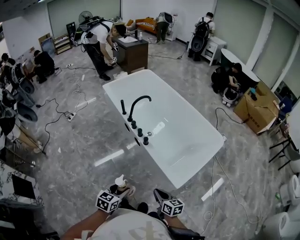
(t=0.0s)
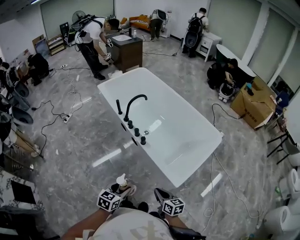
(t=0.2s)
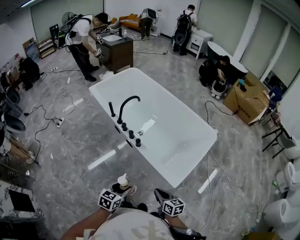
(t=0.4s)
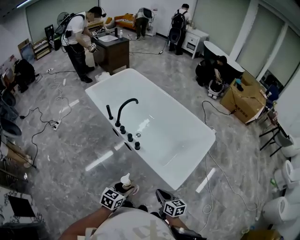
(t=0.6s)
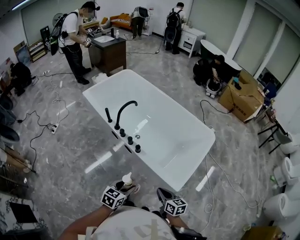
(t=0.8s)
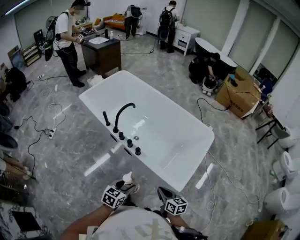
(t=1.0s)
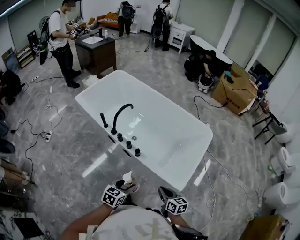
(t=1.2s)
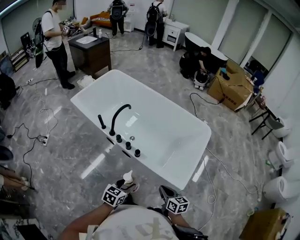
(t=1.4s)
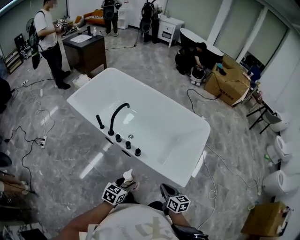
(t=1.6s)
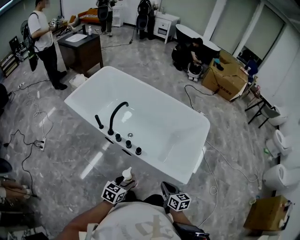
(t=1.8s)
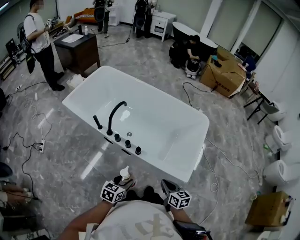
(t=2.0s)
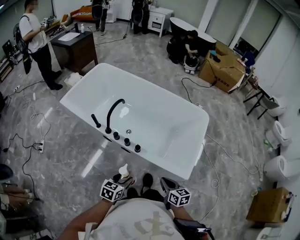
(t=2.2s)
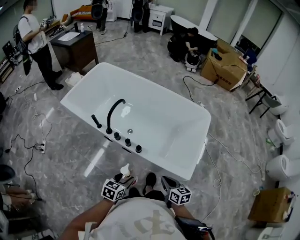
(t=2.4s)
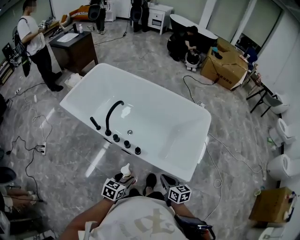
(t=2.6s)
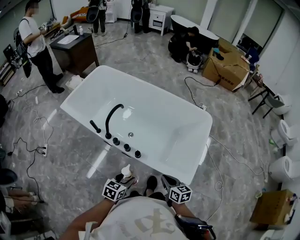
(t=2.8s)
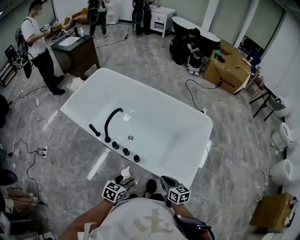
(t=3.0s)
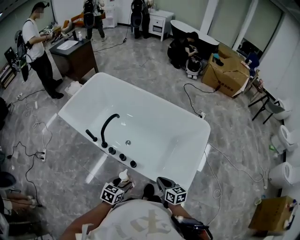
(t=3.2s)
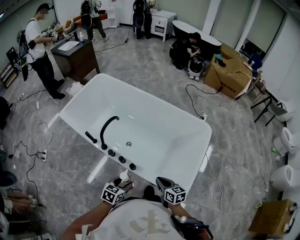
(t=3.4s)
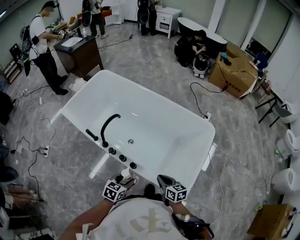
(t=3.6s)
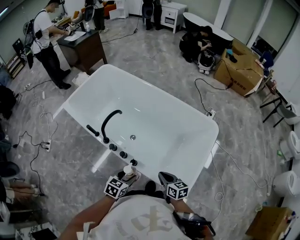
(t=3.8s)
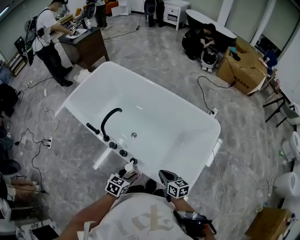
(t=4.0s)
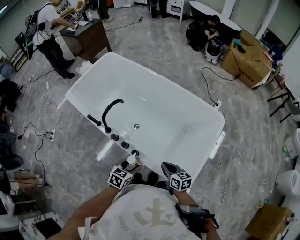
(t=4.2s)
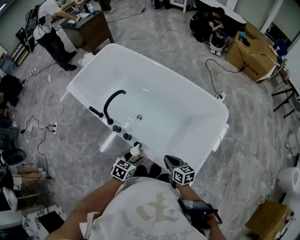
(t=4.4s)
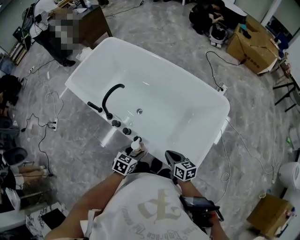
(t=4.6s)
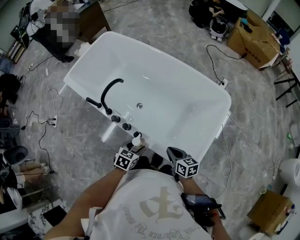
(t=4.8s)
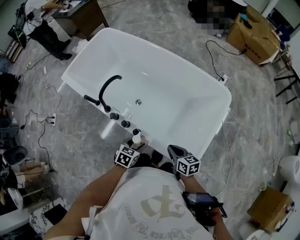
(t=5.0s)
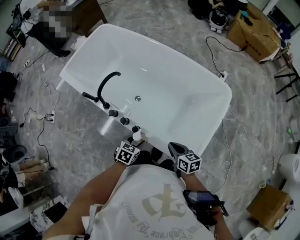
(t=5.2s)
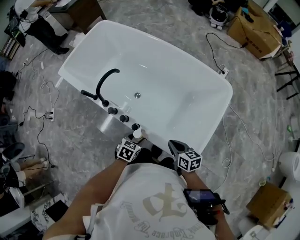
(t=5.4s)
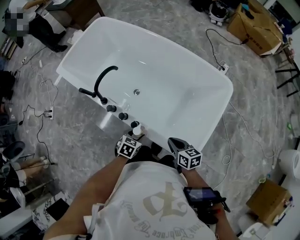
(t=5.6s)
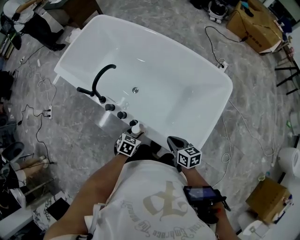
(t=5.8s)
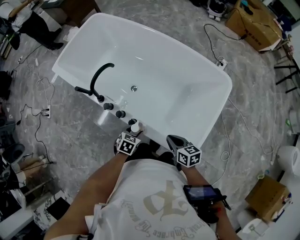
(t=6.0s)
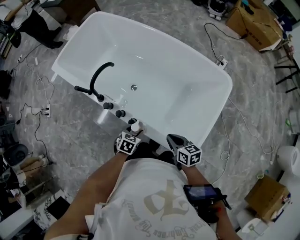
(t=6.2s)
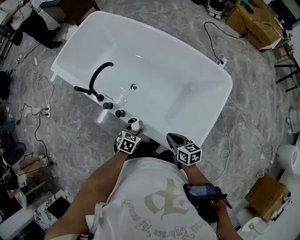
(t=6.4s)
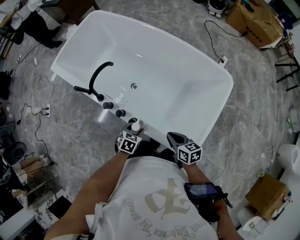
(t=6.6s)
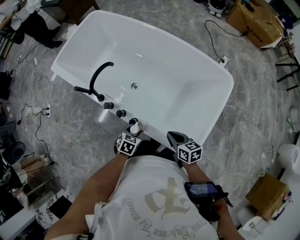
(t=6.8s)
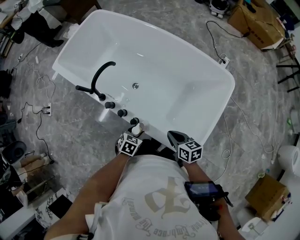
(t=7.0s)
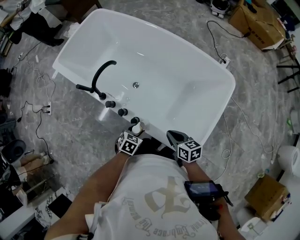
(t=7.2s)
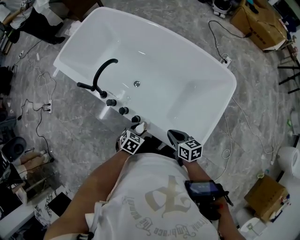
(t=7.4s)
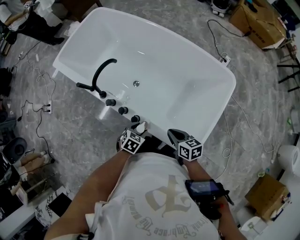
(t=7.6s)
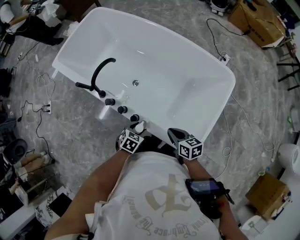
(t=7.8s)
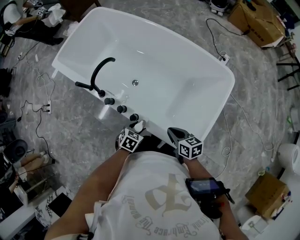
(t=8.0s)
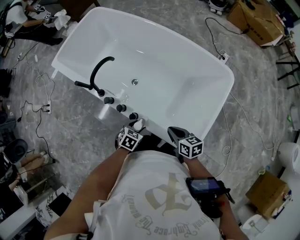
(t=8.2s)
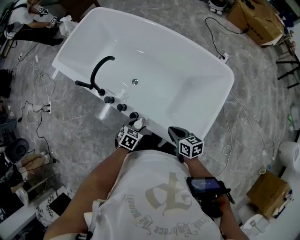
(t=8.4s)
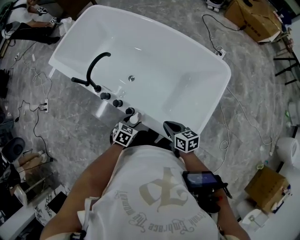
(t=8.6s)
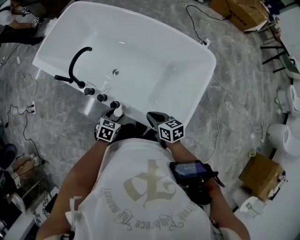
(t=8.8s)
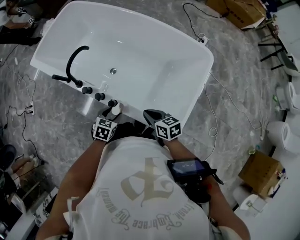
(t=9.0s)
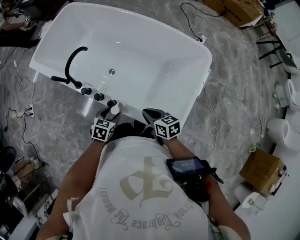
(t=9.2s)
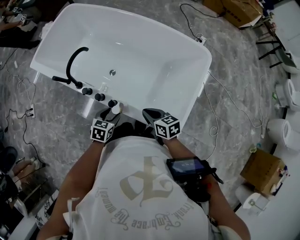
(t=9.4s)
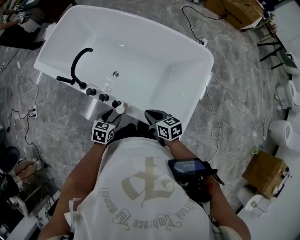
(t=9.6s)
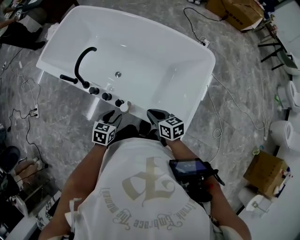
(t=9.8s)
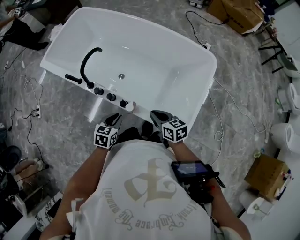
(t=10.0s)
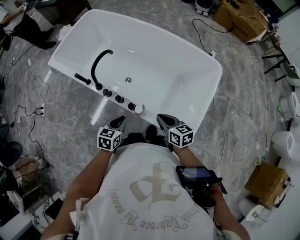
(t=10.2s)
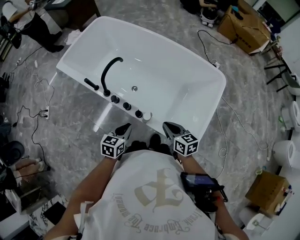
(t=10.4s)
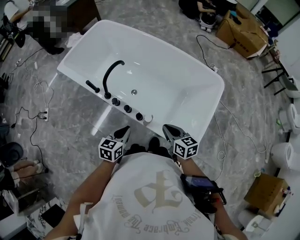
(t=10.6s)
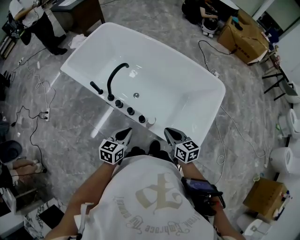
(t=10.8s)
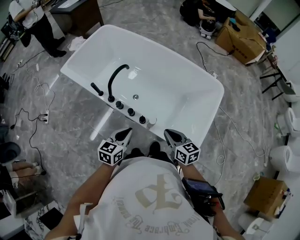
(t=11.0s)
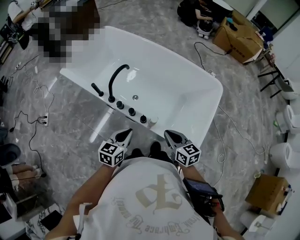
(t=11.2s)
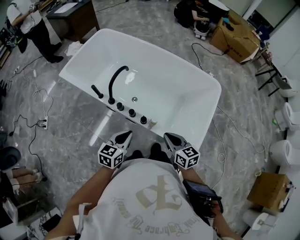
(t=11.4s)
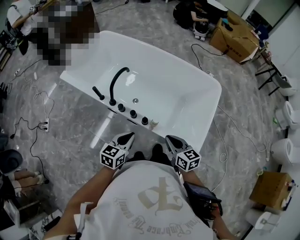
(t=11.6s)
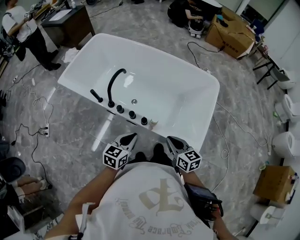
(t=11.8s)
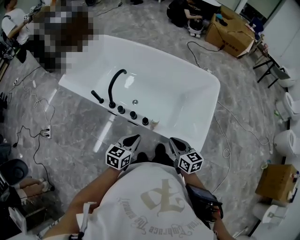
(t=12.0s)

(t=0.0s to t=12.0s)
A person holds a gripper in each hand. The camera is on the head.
t=0.0s - t=1.6s: The right gripper changes place by approximately 15 cm, and changes its angle by about 30 degrees, while the left gripper ends up roughly 20 cm from where it was, and changes its angle by approximately 30 degrees.
t=1.6s - t=3.0s: Both grippers move forward, about 10 cm.
t=3.0s - t=4.4s: The left gripper goes approximately 10 cm forward and to the right, while the right gripper shifts some 10 cm forward.
t=4.4s - t=6.0s: The left gripper travels downward by about 10 cm.
t=6.0s - t=9.0s: The grippers make only small movements.
t=9.0s - t=10.4s: The left gripper goes some 10 cm upward and to the left, swivels some 20 degrees, and closes up. The right gripper moves upward, roughly 5 cm.
t=10.4s - t=12.0s: The right gripper travels backward by approximately 10 cm. Meanwhile the left gripper moves upward, some 5 cm.

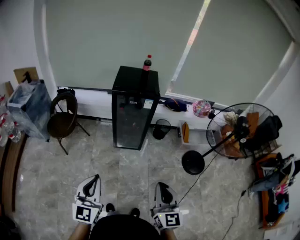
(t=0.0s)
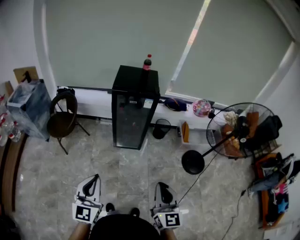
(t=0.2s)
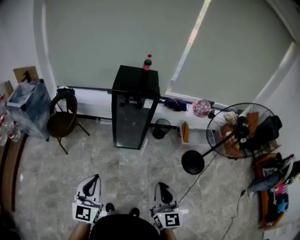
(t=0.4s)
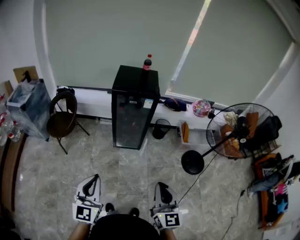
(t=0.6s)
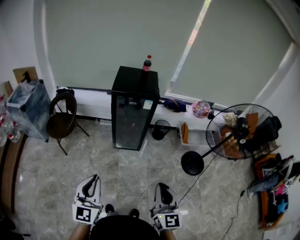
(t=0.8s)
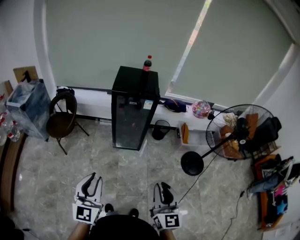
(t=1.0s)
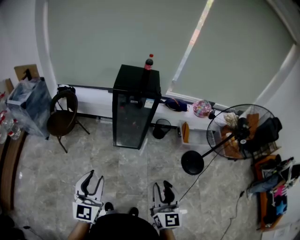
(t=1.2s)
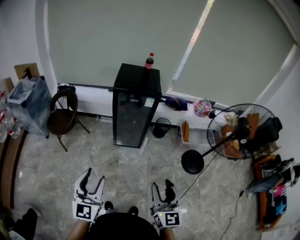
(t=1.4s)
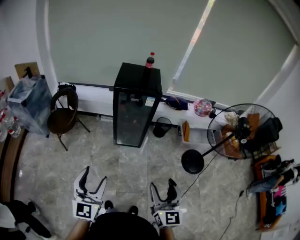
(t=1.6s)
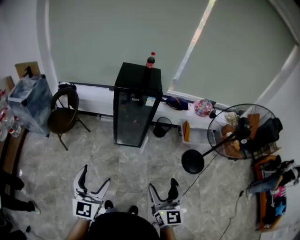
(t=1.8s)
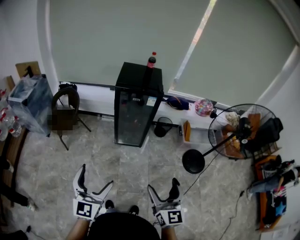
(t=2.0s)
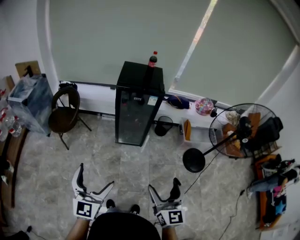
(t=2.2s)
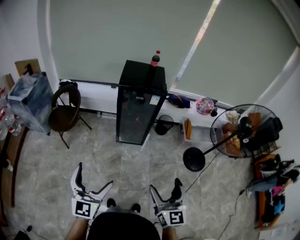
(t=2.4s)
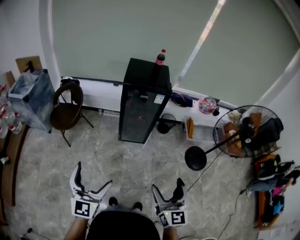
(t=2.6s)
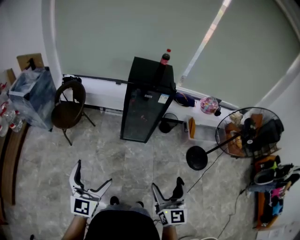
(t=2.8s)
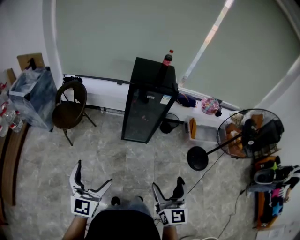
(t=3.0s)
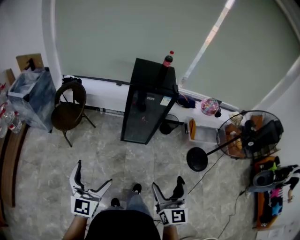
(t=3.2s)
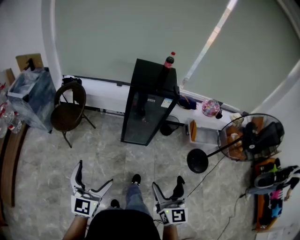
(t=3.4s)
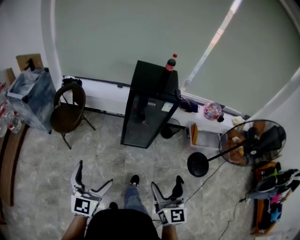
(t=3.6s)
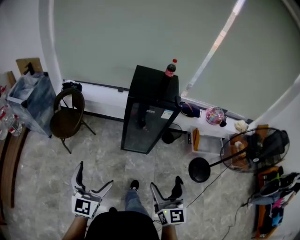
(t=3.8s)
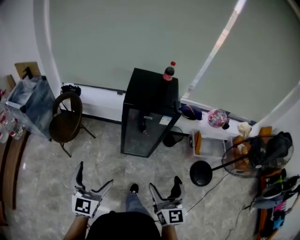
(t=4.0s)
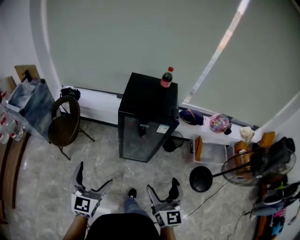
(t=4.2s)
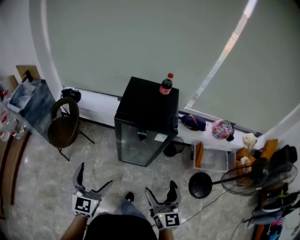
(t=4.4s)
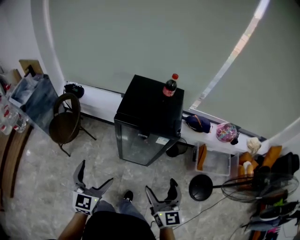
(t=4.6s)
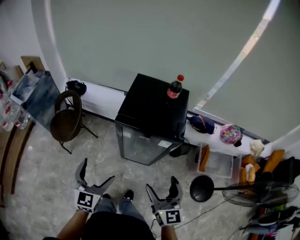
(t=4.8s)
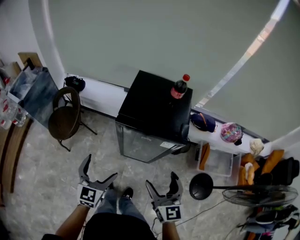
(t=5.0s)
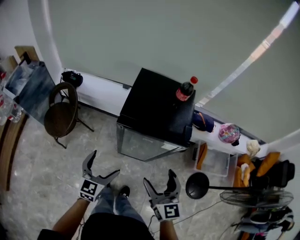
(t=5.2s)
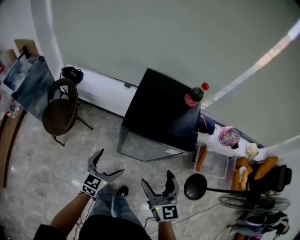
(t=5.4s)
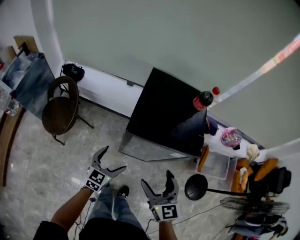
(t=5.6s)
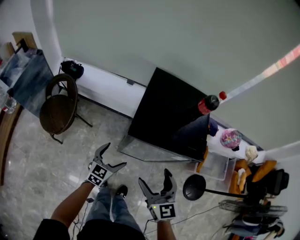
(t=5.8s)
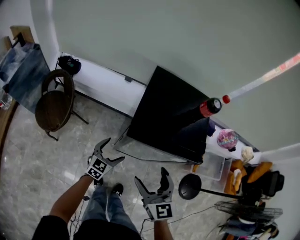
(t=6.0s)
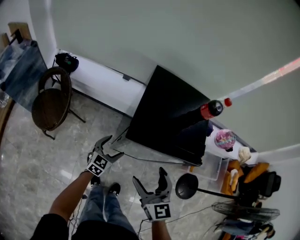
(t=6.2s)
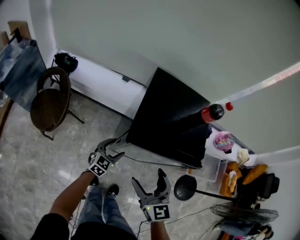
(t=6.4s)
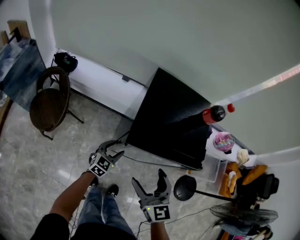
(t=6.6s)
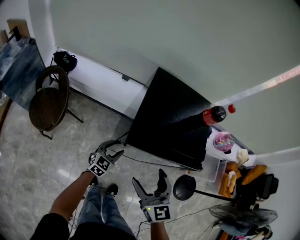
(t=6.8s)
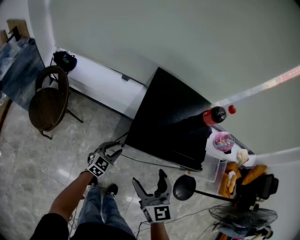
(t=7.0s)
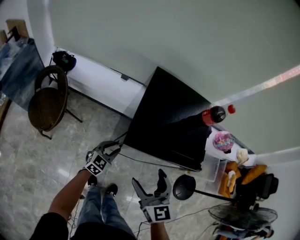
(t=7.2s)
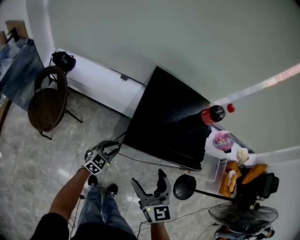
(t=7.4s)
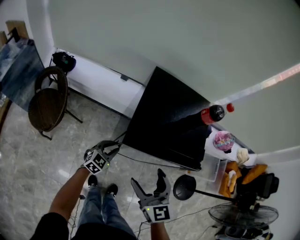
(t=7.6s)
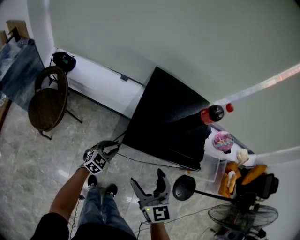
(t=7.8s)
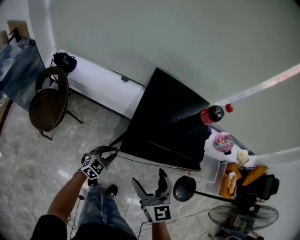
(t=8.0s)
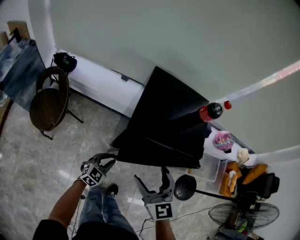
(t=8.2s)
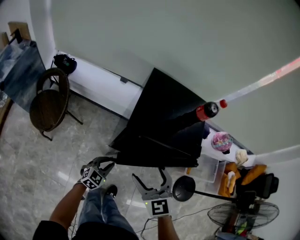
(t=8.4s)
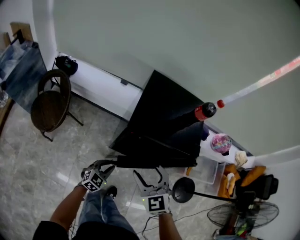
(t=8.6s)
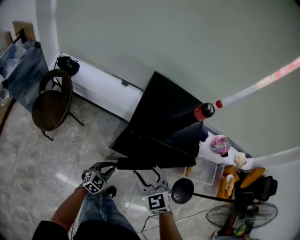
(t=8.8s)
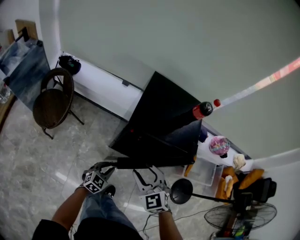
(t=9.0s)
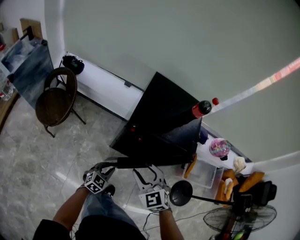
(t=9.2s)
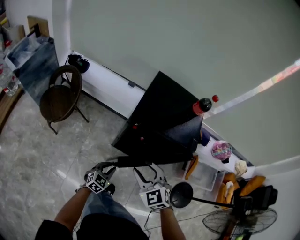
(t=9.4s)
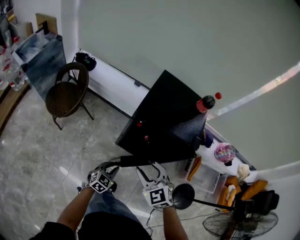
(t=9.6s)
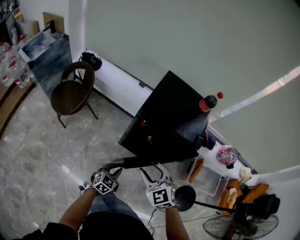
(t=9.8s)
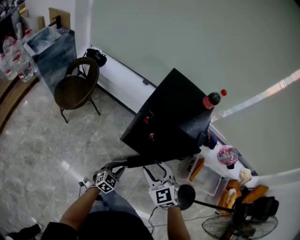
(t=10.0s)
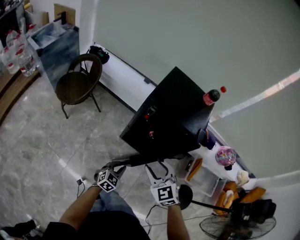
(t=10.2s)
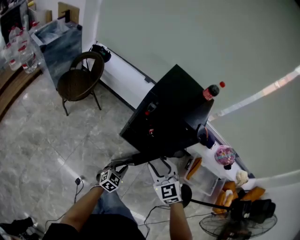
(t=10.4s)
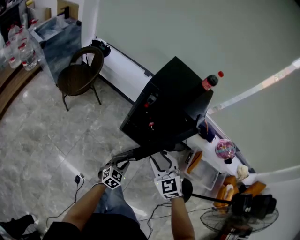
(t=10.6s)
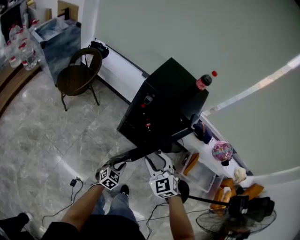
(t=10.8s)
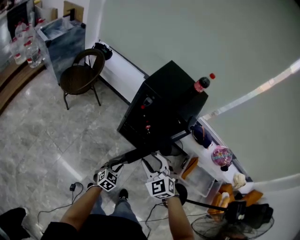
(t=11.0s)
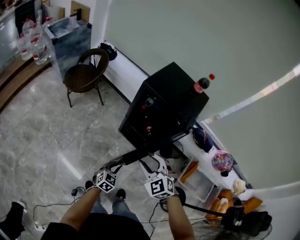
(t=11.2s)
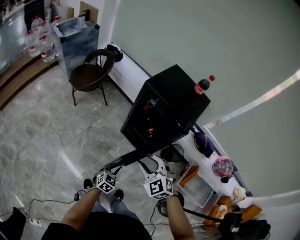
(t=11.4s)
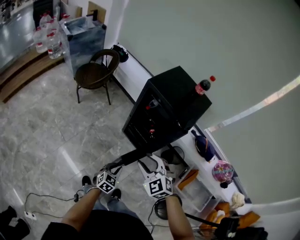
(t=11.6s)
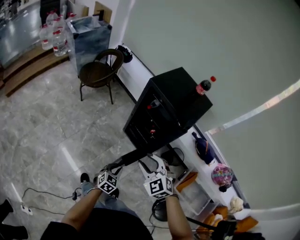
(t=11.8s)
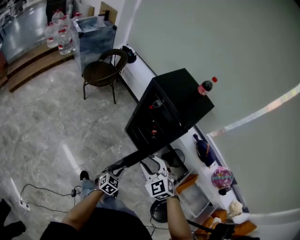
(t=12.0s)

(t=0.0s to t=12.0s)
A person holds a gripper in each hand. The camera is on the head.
t=0.0s - t=1.6s: The right gripper opens its fingers, while the left gripper opens its fingers.
t=1.6s - t=3.0s: The grippers both shift to the left by approximately 10 cm. The left gripper opens up.
t=3.0s - t=4.4s: Both grippers move forward, roughly 30 cm.
t=4.4s - t=6.0s: The left gripper goes roughly 35 cm downward and forward, and swivels some 20 degrees. Meanwhile the right gripper moves forward and to the left, approximately 25 cm.
t=6.0s - t=7.6s: The left gripper moves some 5 cm, and closes up.
t=7.6s - t=9.0s: The right gripper swivels some 30 degrees, and closes its fingers, while the left gripper heads backward, covering roughly 15 cm.
t=9.0s - t=10.4s: Both grippers move backward and to the right, approximately 15 cm.
t=10.4s - t=12.0s: The grippers both shift backward and to the right by about 15 cm. The right gripper swivels some 30 degrees. Meanwhile the left gripper turns by approximately 20 degrees.
